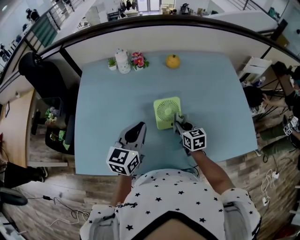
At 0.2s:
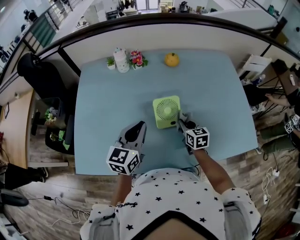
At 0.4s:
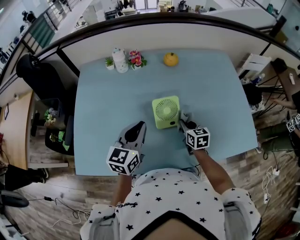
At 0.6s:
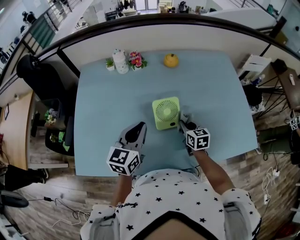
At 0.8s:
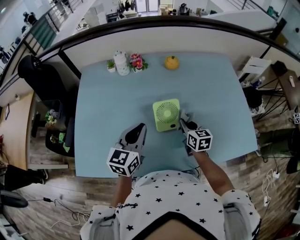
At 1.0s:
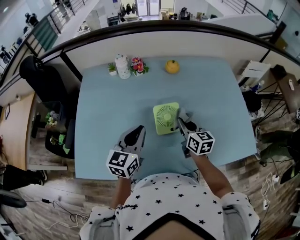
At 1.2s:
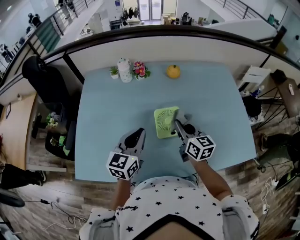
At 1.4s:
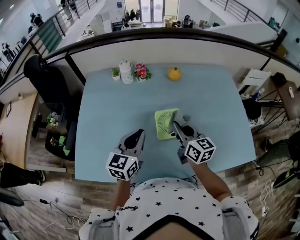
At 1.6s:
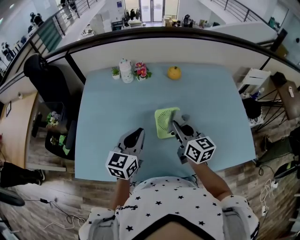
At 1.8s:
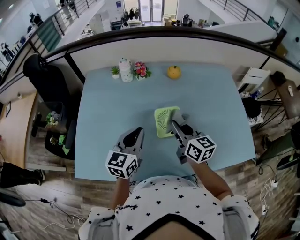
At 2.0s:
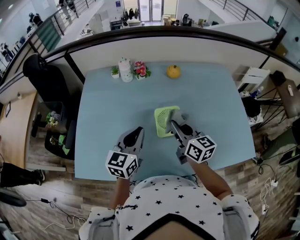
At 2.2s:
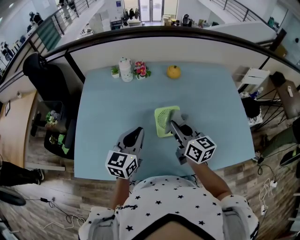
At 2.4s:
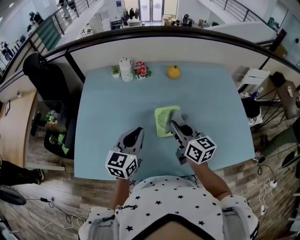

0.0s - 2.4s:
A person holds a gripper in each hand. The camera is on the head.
0.0s - 1.2s: The right gripper travels upward by approximately 15 cm, and swivels roughly 20 degrees.
1.2s - 2.4s: The right gripper moves roughly 5 cm.

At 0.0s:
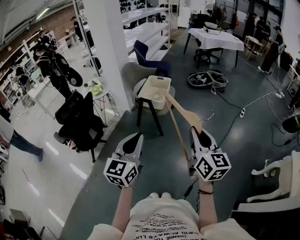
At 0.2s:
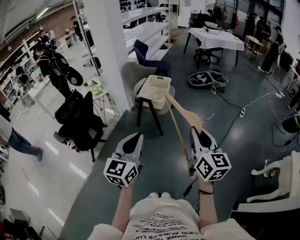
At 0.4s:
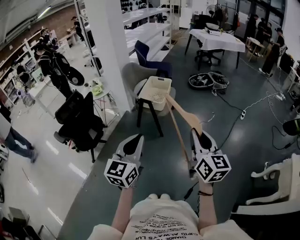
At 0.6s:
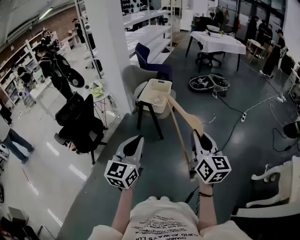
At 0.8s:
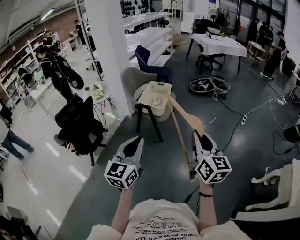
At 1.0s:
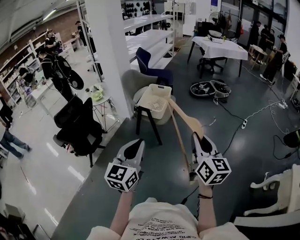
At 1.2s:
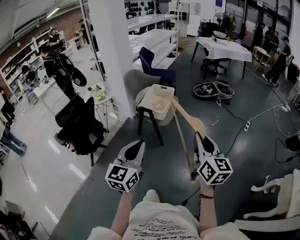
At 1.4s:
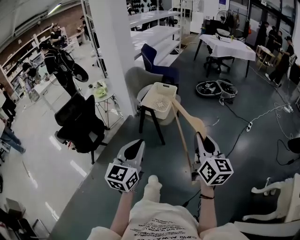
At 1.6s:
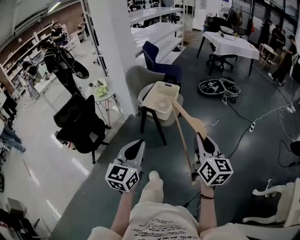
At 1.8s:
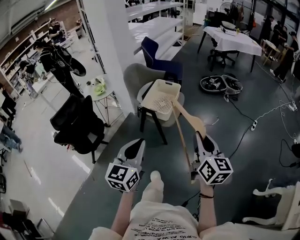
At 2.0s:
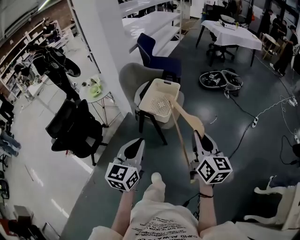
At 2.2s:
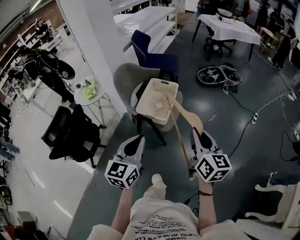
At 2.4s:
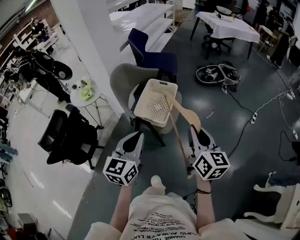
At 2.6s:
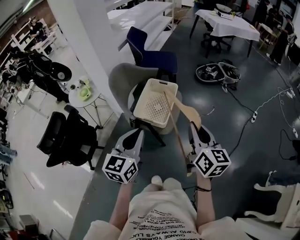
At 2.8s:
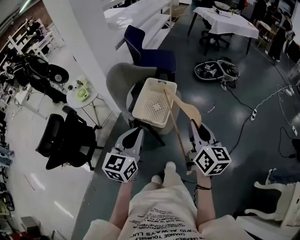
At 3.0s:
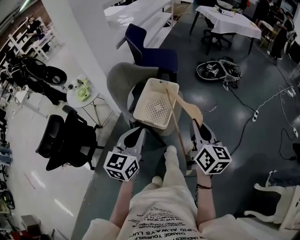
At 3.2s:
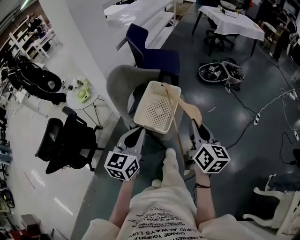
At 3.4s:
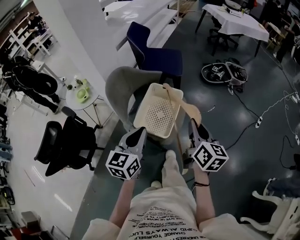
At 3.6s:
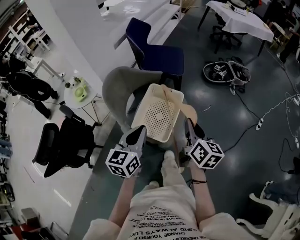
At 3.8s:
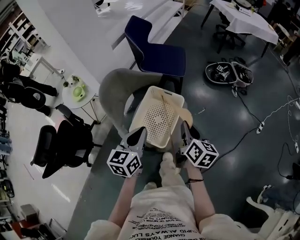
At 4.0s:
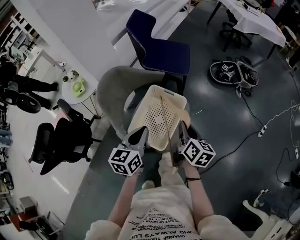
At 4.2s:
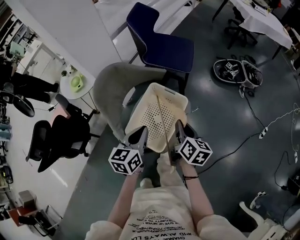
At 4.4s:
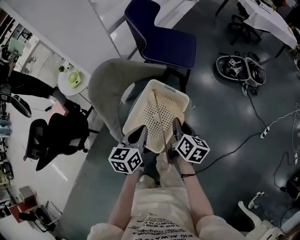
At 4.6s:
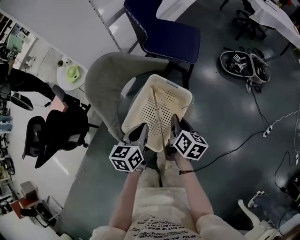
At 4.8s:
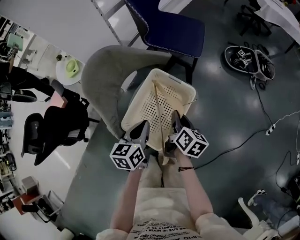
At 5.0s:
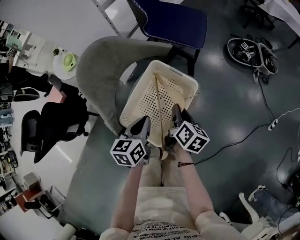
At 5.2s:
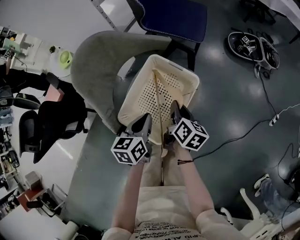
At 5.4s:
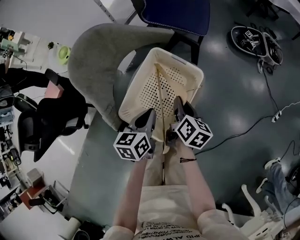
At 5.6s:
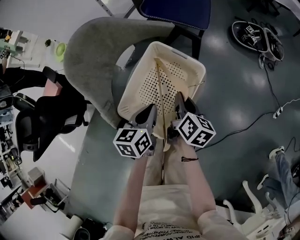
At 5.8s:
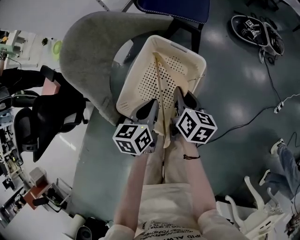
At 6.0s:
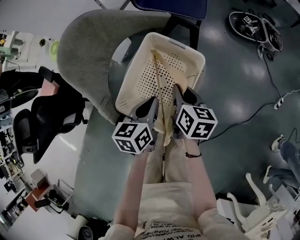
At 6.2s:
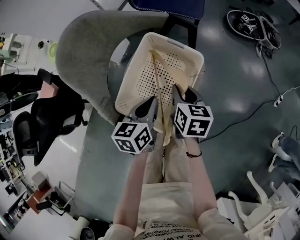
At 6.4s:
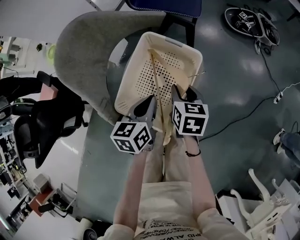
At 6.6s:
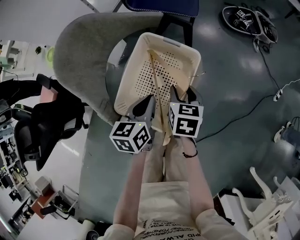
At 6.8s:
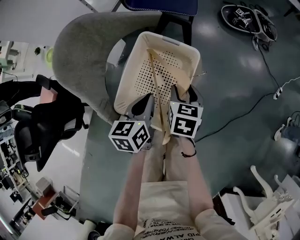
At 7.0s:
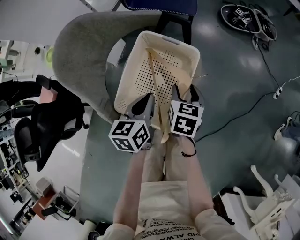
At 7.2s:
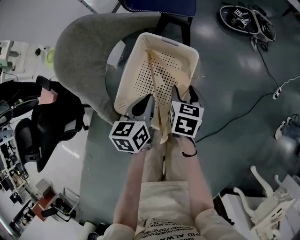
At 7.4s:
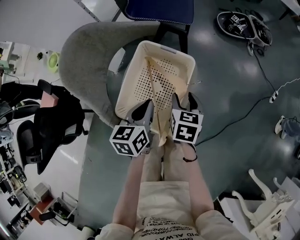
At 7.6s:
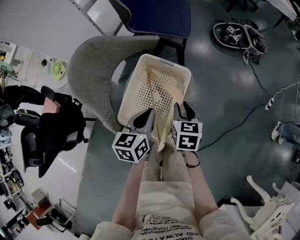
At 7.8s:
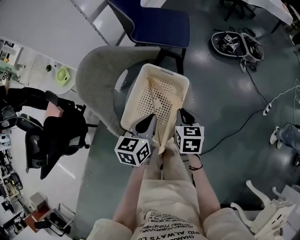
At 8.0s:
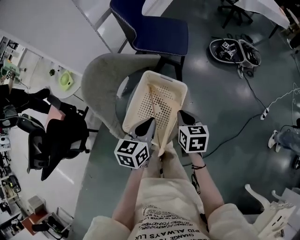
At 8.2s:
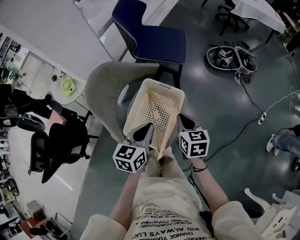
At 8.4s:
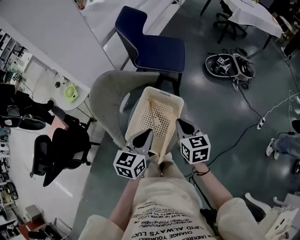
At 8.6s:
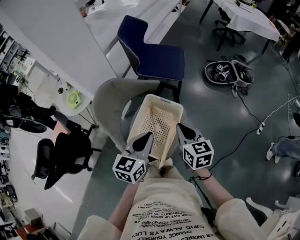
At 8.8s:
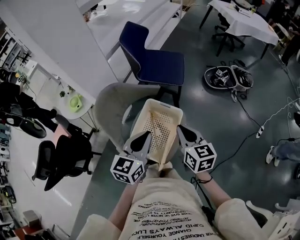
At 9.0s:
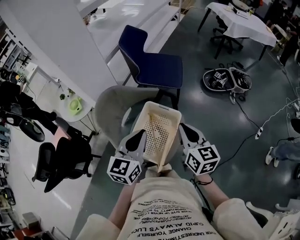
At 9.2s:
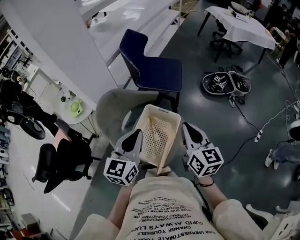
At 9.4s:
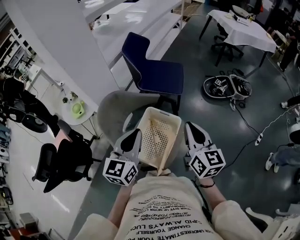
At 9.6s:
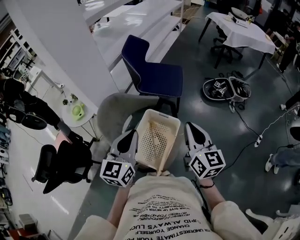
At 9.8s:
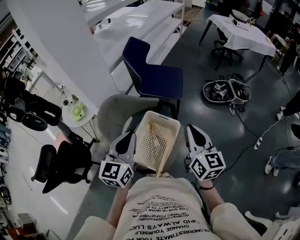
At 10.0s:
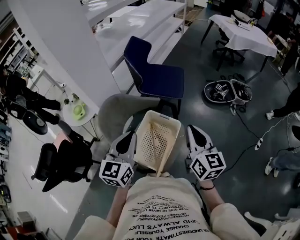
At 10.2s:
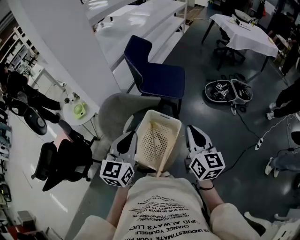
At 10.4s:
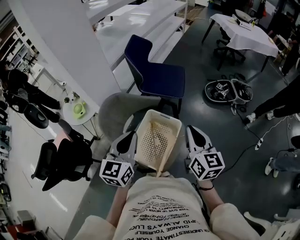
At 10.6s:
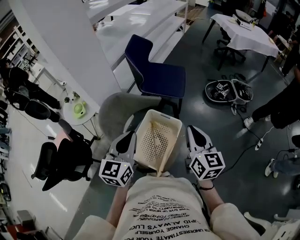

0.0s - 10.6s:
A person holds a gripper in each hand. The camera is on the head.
0.0s - 1.6s: Both grippers travel together forward, approximately 10 cm.
1.6s - 3.0s: The grippers both shift forward by approximately 30 cm.
3.0s - 4.6s: The grippers both shift forward and downward by about 35 cm. The left gripper changes its angle by about 30 degrees, while the right gripper turns by roughly 30 degrees.
4.6s - 6.0s: Both grippers move downward, roughly 10 cm.
6.0s - 7.6s: The left gripper goes roughly 5 cm upward. Meanwhile the right gripper ends up some 5 cm from where it was, changes its angle by some 20 degrees, and opens, then closes again.
7.6s - 9.0s: The grippers both shift upward by about 25 cm. The left gripper turns by about 30 degrees. The right gripper turns by some 30 degrees, and closes up.
9.0s - 10.6s: The left gripper changes place by about 5 cm; the right gripper moves some 5 cm.

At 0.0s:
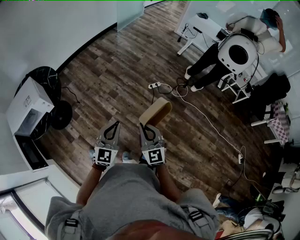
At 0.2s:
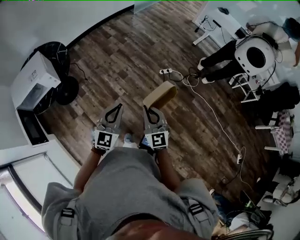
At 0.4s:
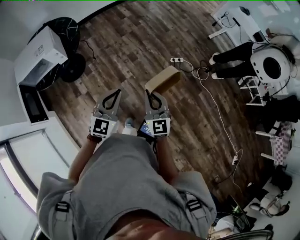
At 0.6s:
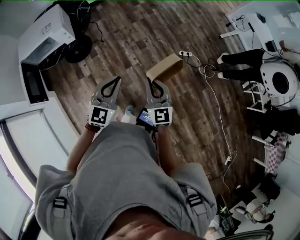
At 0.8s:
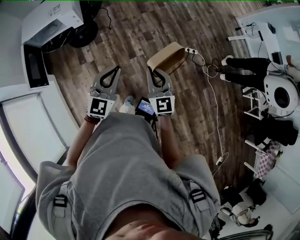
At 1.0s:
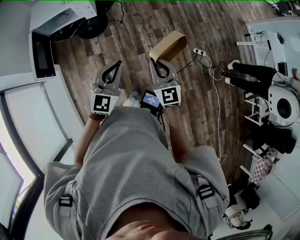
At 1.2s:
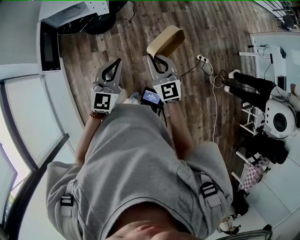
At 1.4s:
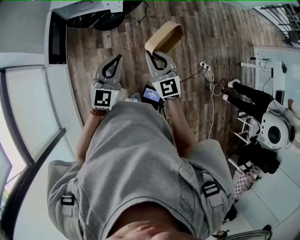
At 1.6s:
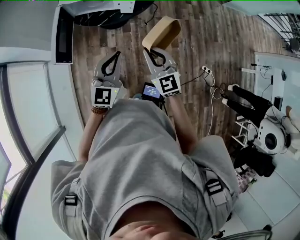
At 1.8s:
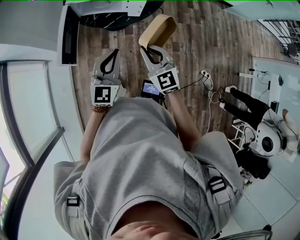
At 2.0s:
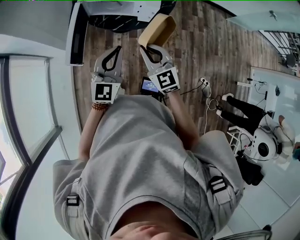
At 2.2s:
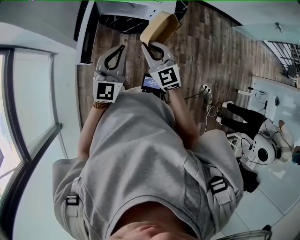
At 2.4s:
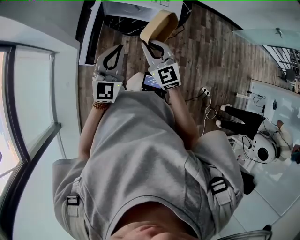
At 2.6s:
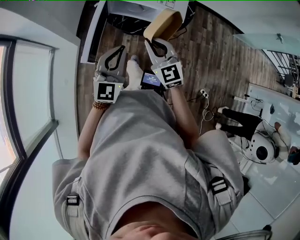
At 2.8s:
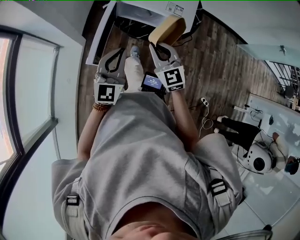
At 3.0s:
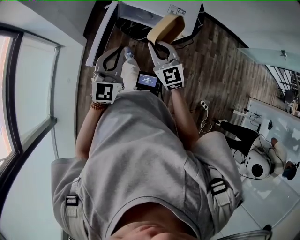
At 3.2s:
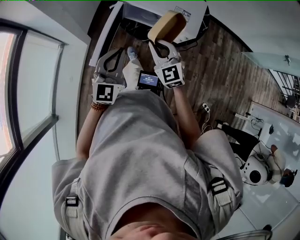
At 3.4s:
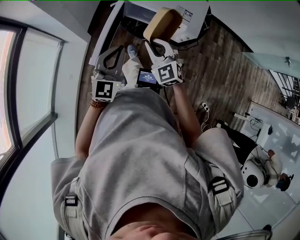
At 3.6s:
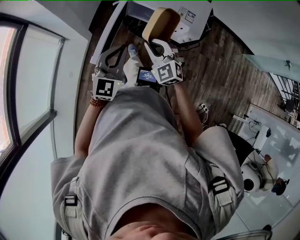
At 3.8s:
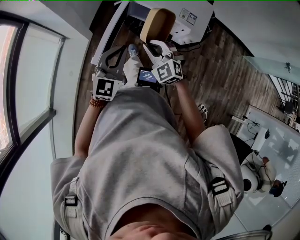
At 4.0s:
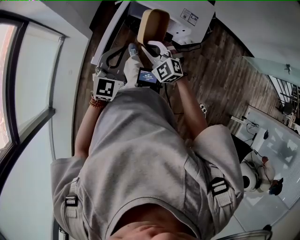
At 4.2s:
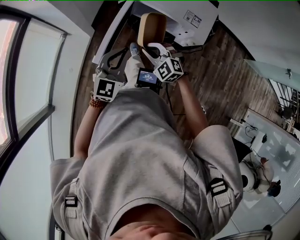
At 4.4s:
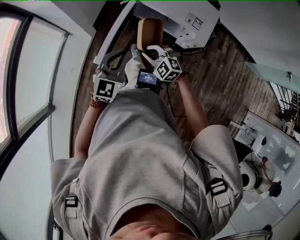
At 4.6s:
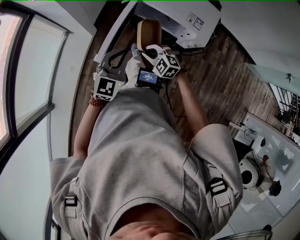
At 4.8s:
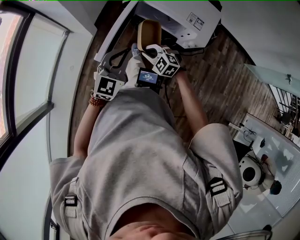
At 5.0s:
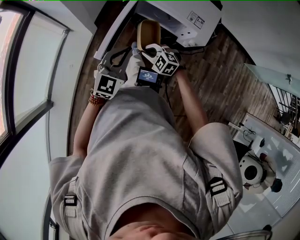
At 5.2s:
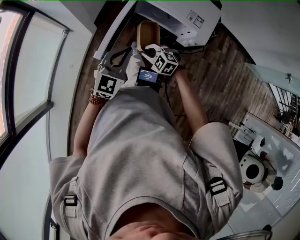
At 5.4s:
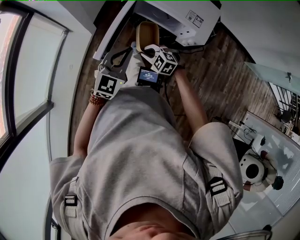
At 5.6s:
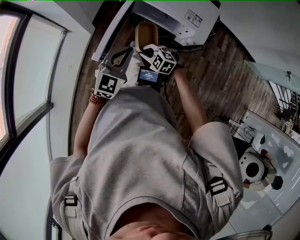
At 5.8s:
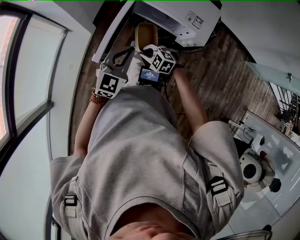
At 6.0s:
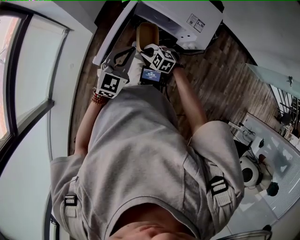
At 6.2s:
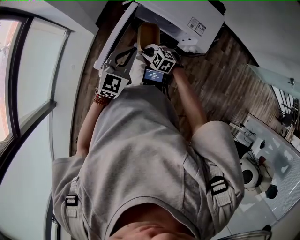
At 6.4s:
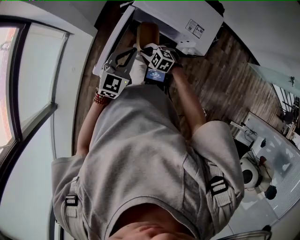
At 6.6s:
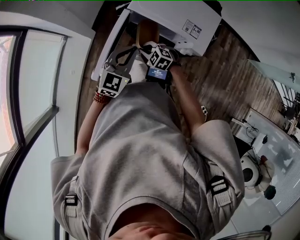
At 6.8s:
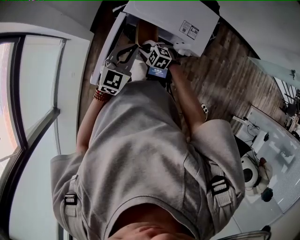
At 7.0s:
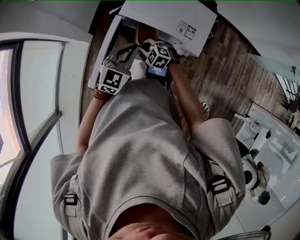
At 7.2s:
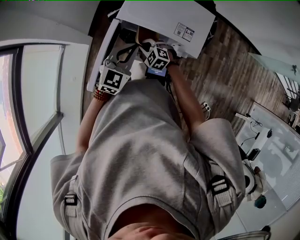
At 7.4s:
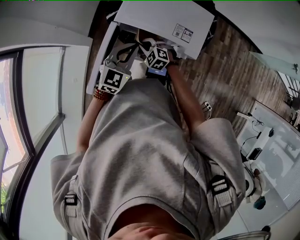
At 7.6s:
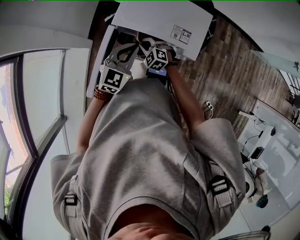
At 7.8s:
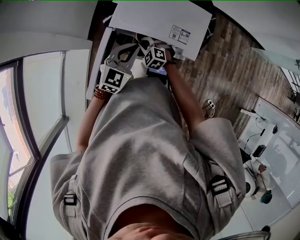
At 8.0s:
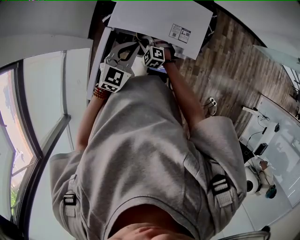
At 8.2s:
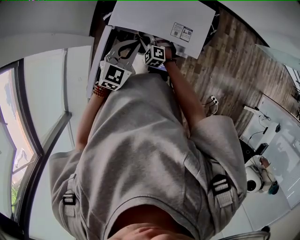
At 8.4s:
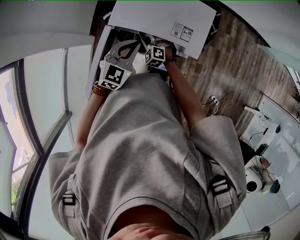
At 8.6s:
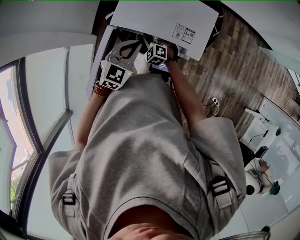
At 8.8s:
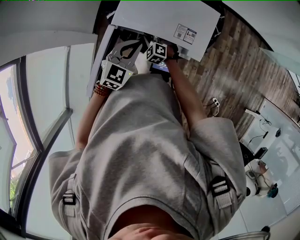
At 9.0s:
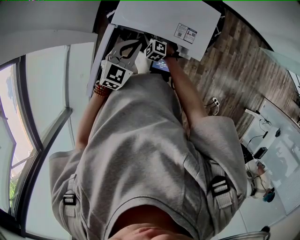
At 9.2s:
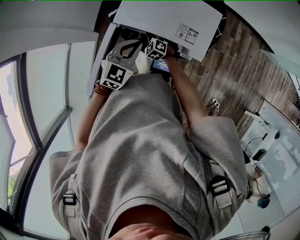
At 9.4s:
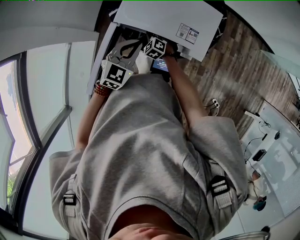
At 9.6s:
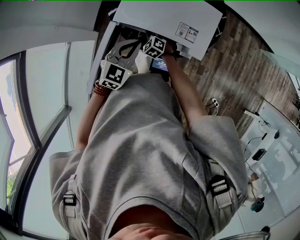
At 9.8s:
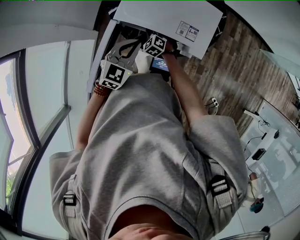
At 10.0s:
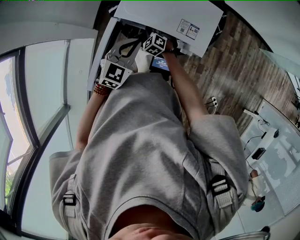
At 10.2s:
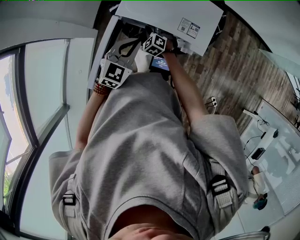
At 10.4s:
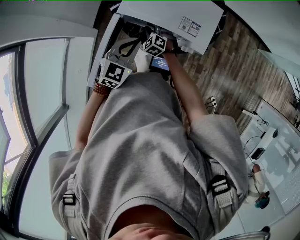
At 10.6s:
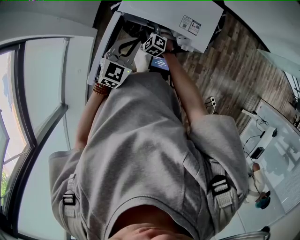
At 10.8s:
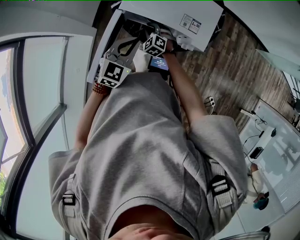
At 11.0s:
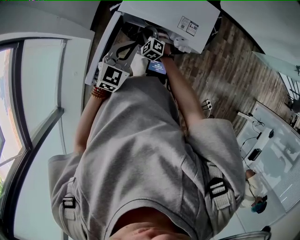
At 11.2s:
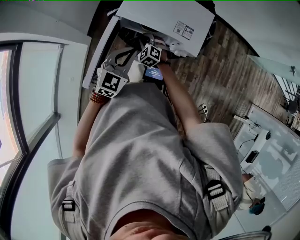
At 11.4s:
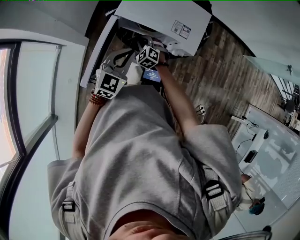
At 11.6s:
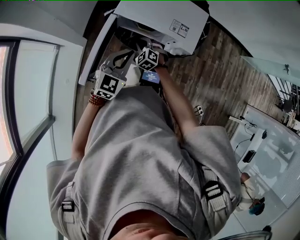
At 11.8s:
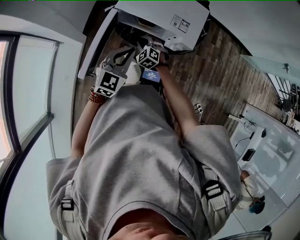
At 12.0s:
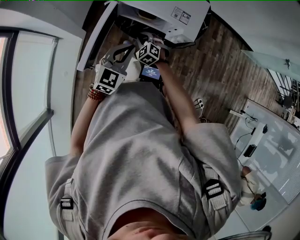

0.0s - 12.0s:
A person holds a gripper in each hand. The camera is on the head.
0.0s - 1.6s: The pair of grippers is taken about 40 cm. The left gripper turns by approximately 50 degrees, while the right gripper changes its angle by about 50 degrees.
1.6s - 3.0s: The left gripper moves to the left and forward, about 25 cm; the right gripper travels forward and to the left by some 30 cm.
3.0s - 4.4s: The right gripper shifts some 15 cm downward, and rotates approximately 50 degrees, while the left gripper changes place by roughly 5 cm.
4.4s - 6.0s: The right gripper heads downward, covering approximately 10 cm.
6.0s - 7.6s: The two grippers go some 15 cm forward and to the right. The right gripper rotates some 20 degrees.
7.6s - 9.0s: The right gripper heads downward and forward, covering roughly 10 cm.
9.0s - 10.4s: The grippers stay close to where they were, moving slightly.
10.4s - 12.0s: Both grippers move backward, some 10 cm.
